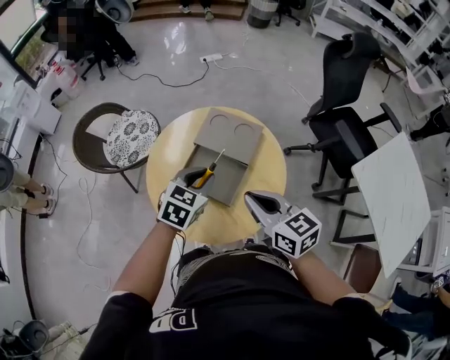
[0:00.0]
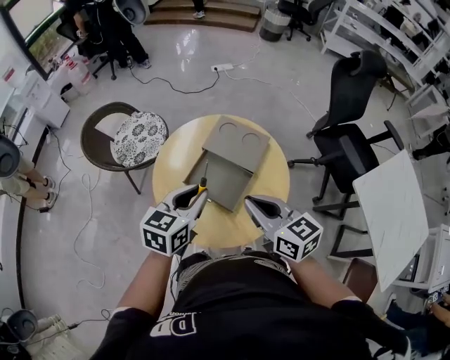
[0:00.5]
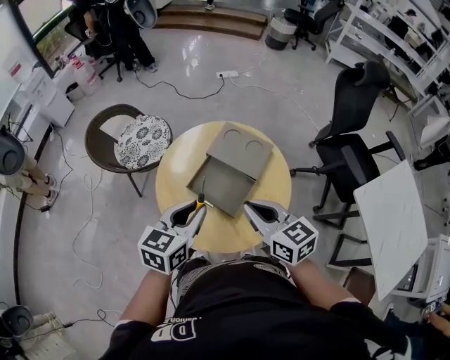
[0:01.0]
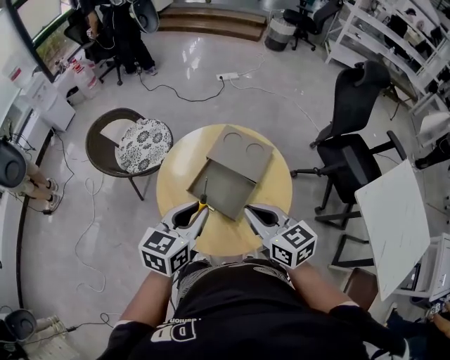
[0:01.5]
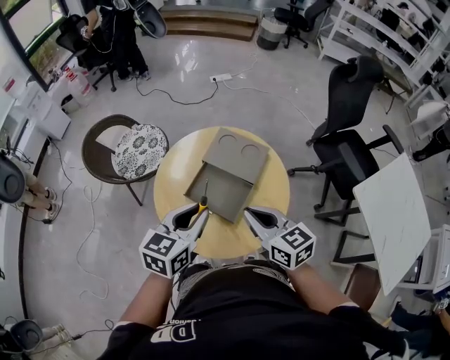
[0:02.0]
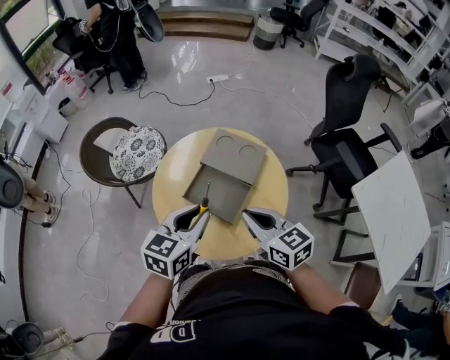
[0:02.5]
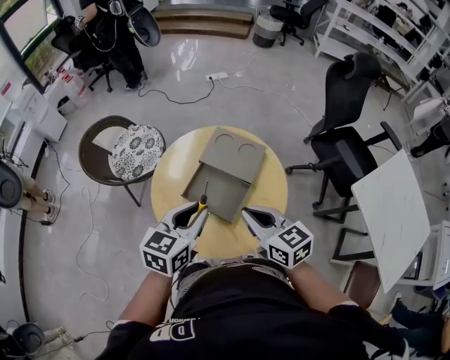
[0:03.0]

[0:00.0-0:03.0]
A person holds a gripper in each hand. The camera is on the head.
0:00.0 to 0:01.5: The left gripper travels upward, backward and to the left by about 10 cm, and swivels roughly 20 degrees.
0:01.5 to 0:03.0: The grippers make only small movements.

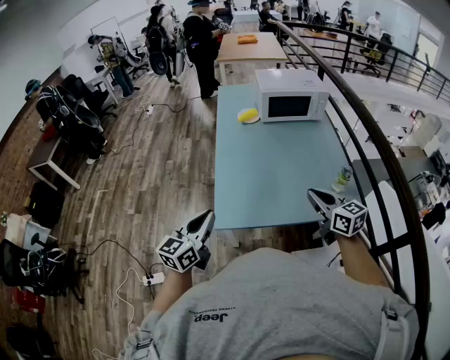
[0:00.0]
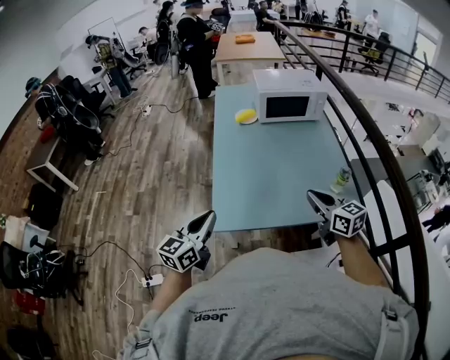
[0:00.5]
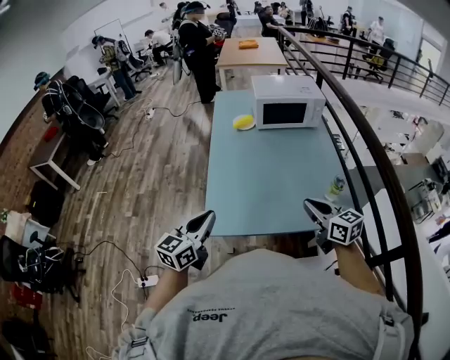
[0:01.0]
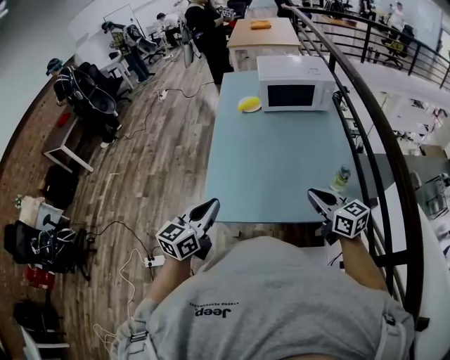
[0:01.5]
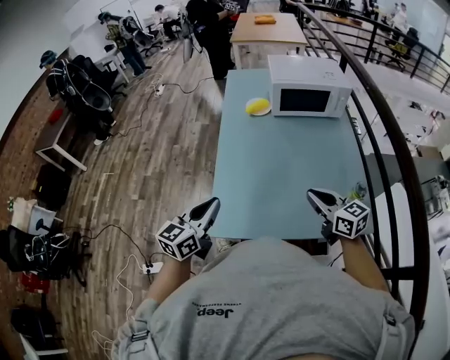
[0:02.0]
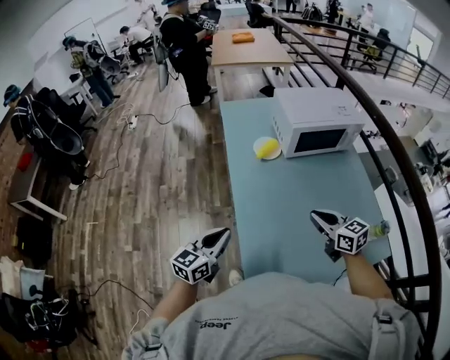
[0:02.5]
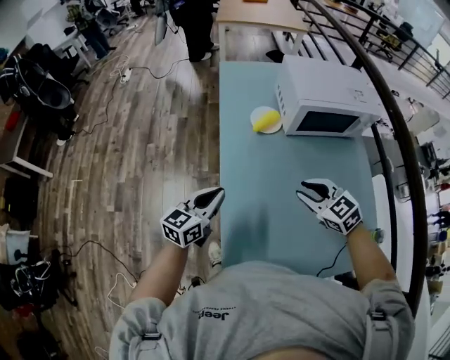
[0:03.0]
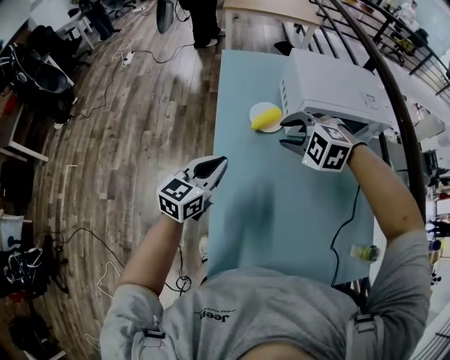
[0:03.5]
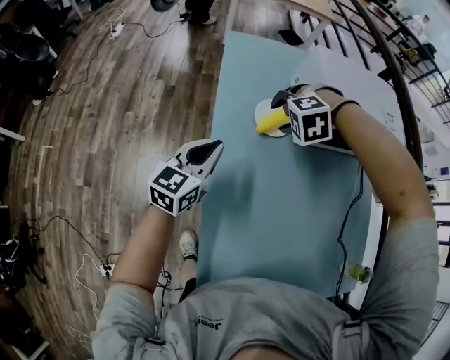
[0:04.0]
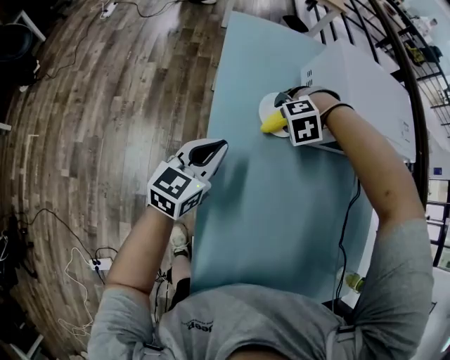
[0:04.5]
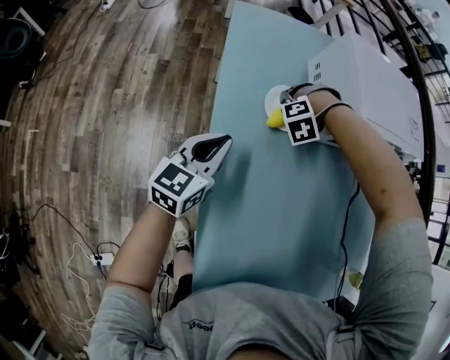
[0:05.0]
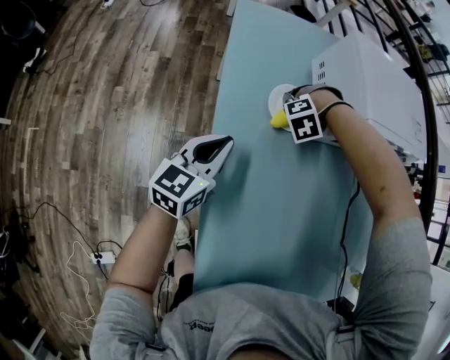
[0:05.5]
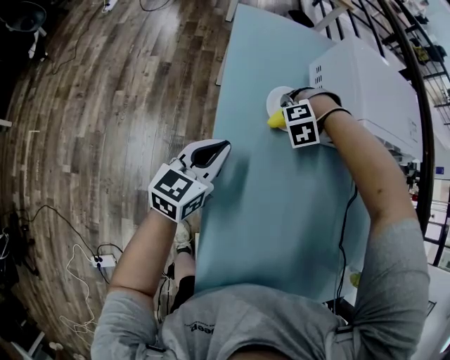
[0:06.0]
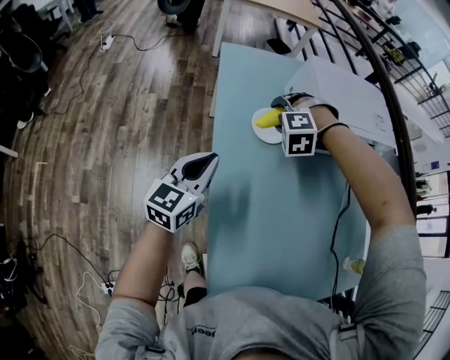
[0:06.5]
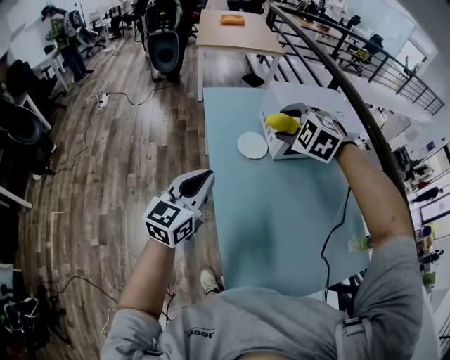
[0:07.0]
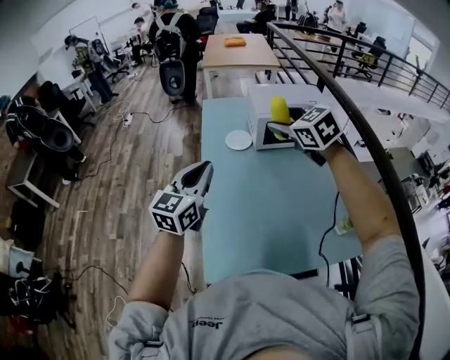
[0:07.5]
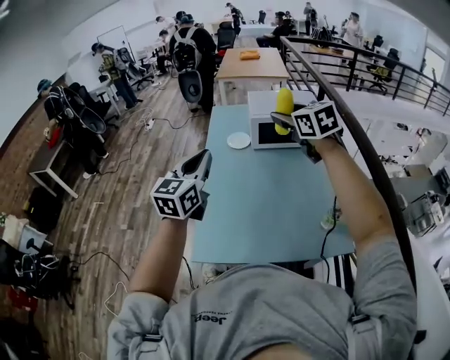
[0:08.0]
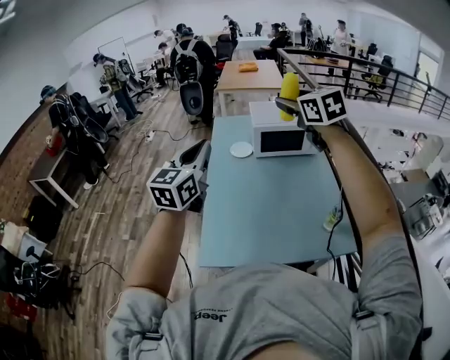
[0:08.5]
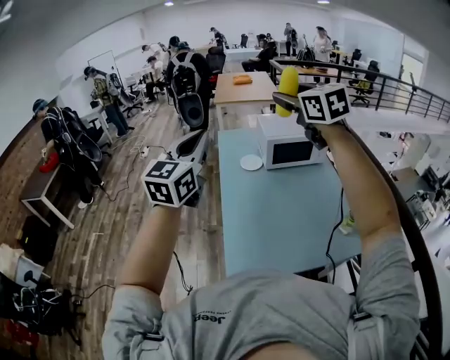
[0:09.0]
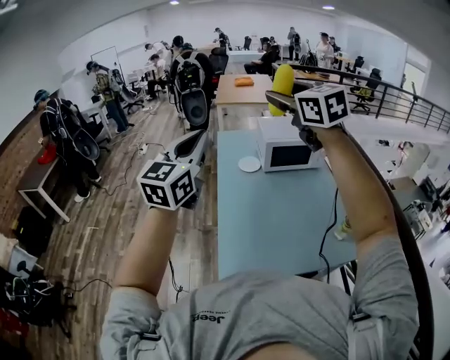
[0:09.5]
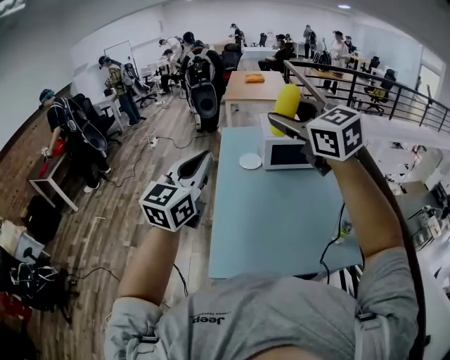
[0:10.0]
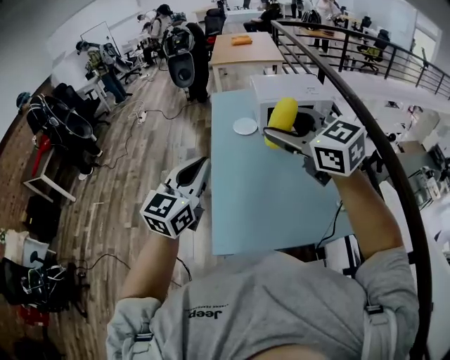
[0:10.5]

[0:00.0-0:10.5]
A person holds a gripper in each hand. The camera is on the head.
0:00.0 to 0:02.0: The left gripper goes some 10 cm forward. The right gripper moves forward and downward, about 10 cm.
0:02.0 to 0:04.0: Both grippers are carried roughly 50 cm. The right gripper tips its fingers downward by roughly 70 degrees, and opens its fingers.
0:04.0 to 0:06.5: The right gripper goes downward and returns, some 20 cm each way, and rotates roughly 20 degrees; the left gripper travels downward and back again, some 10 cm each way.
0:06.5 to 0:08.5: The right gripper heads upward, covering about 50 cm, and points its fingers roughly 50 degrees further upward; the left gripper moves approximately 50 cm, and swivels approximately 20 degrees.
0:08.5 to 0:10.5: The right gripper is displaced backward, to the left and downward by roughly 20 cm, while the left gripper heads downward and to the left, covering some 10 cm.

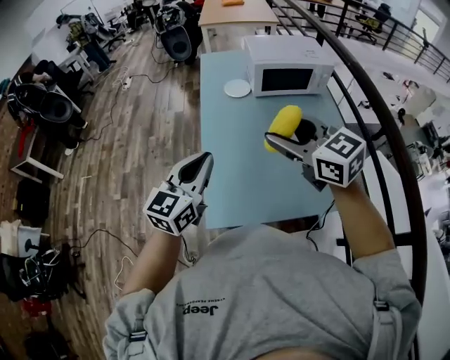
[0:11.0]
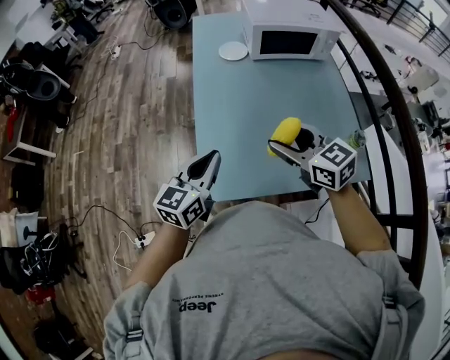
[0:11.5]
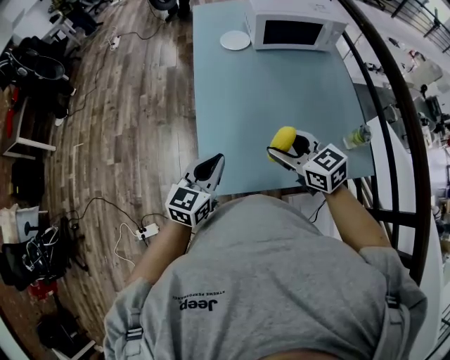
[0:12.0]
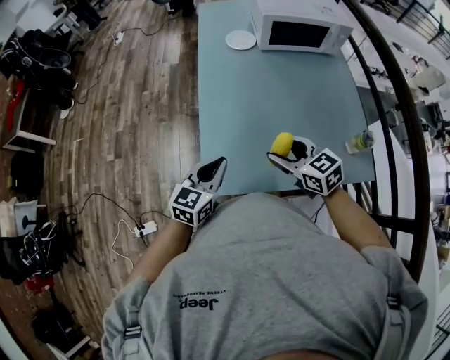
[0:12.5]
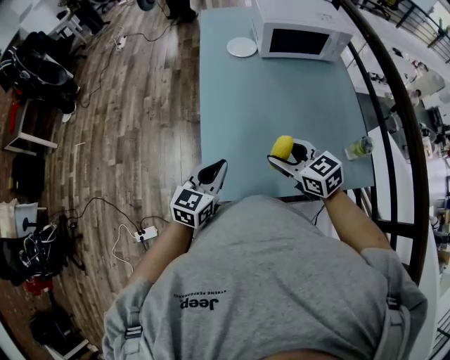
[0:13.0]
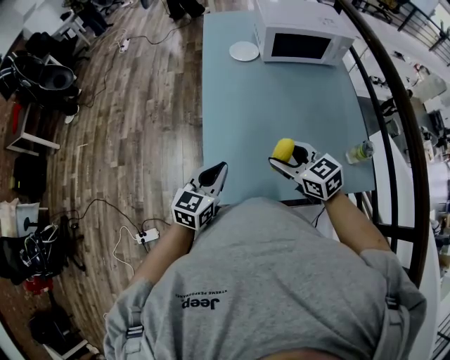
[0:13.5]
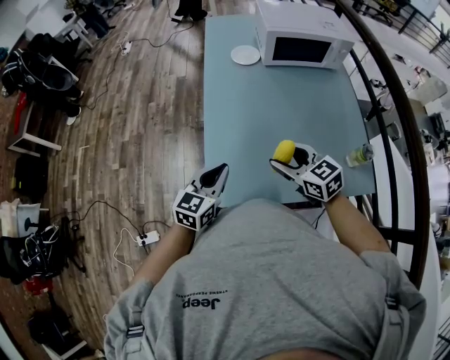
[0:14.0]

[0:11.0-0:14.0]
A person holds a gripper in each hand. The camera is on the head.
0:11.0 to 0:12.5: The two grippers go about 20 cm downward.
0:12.5 to 0:14.0: The grippers stay close to where they were, moving slightly.

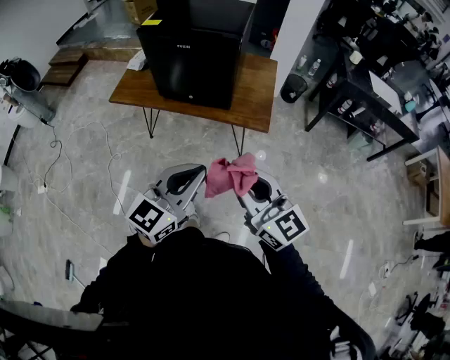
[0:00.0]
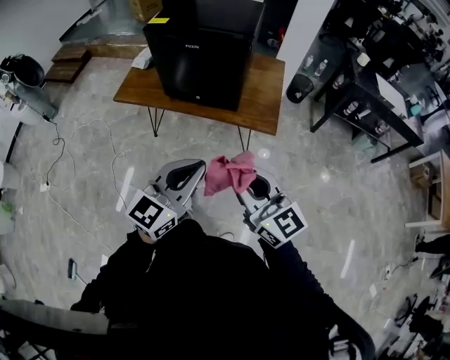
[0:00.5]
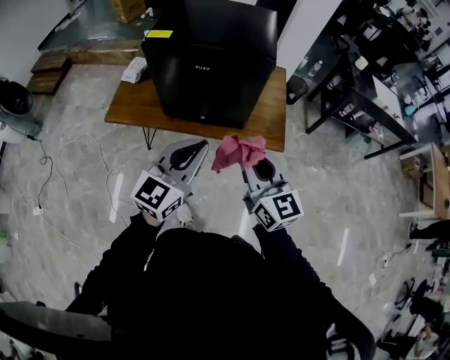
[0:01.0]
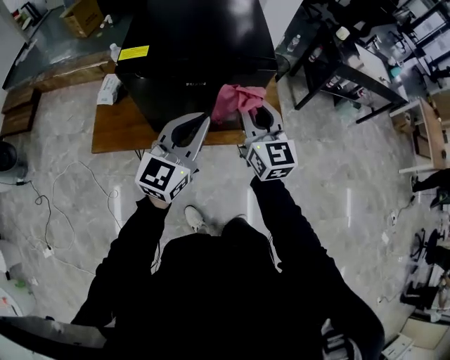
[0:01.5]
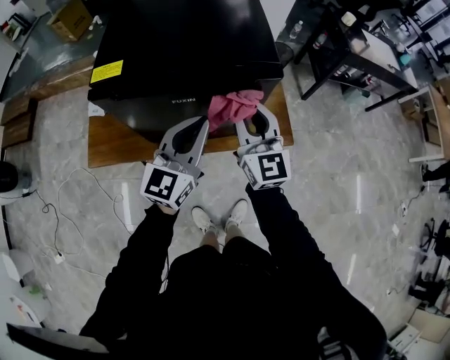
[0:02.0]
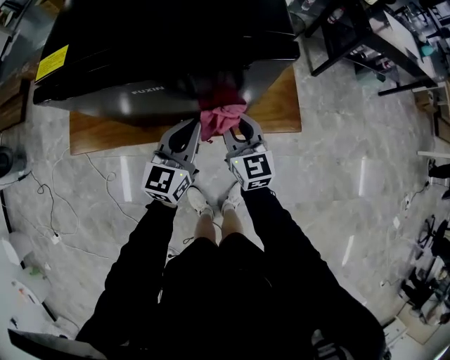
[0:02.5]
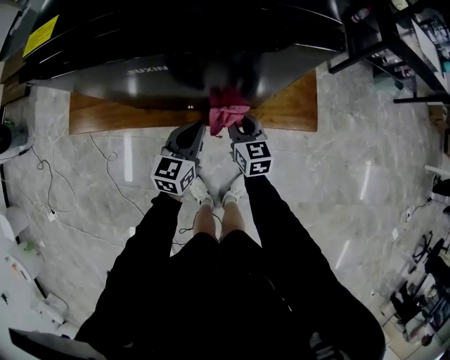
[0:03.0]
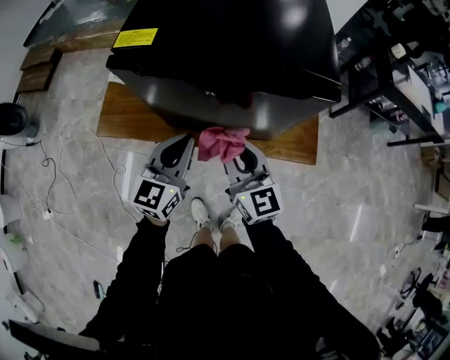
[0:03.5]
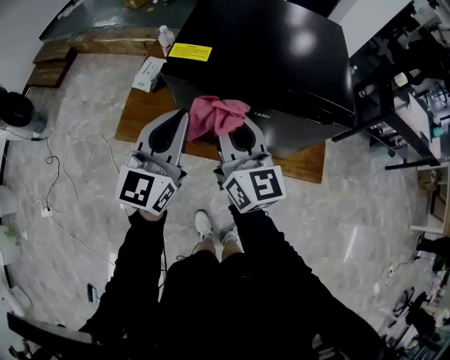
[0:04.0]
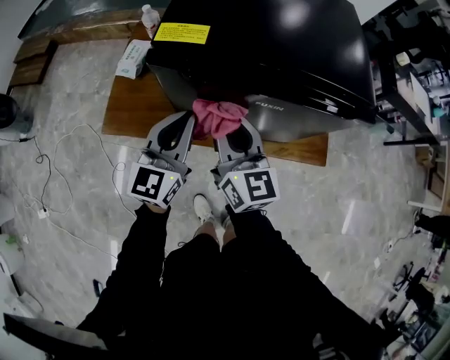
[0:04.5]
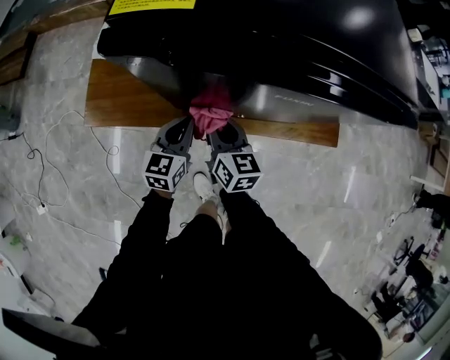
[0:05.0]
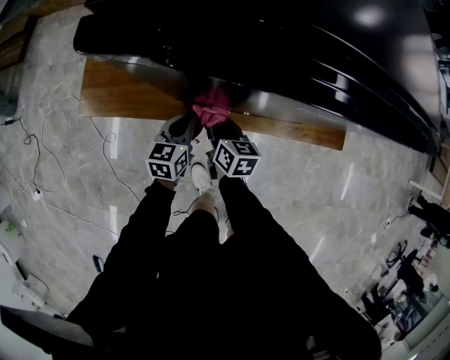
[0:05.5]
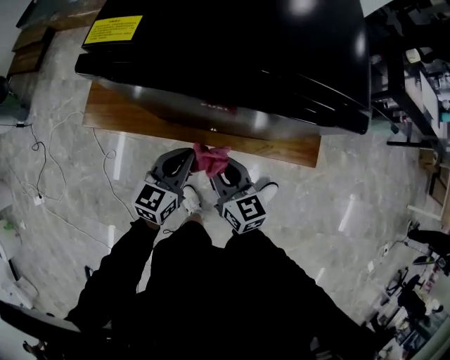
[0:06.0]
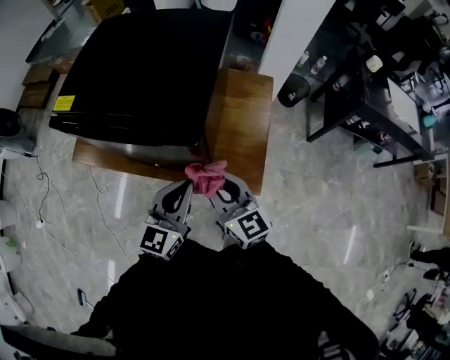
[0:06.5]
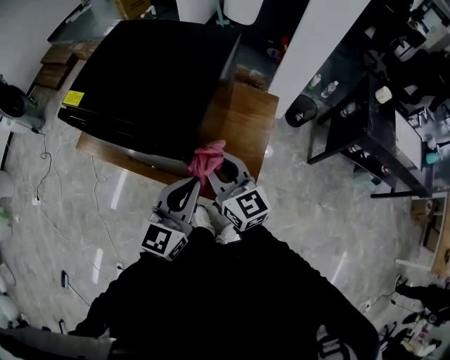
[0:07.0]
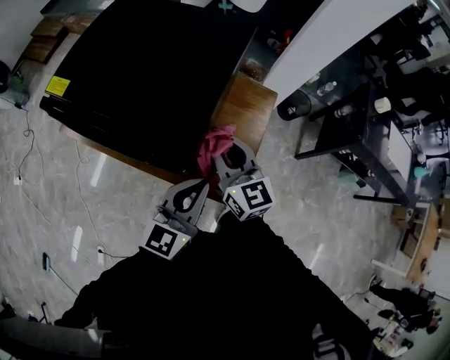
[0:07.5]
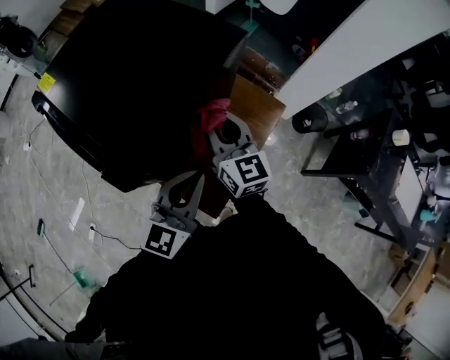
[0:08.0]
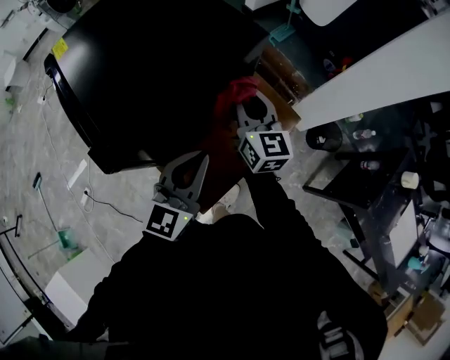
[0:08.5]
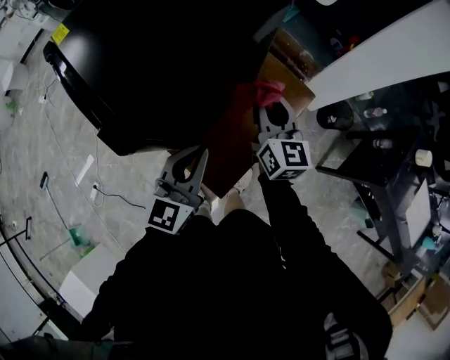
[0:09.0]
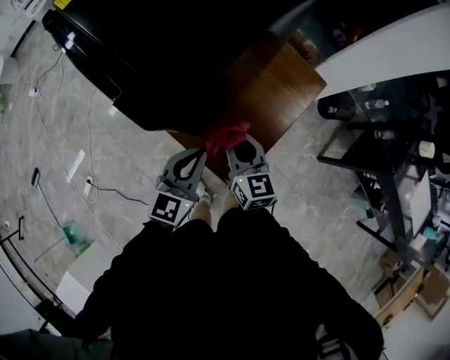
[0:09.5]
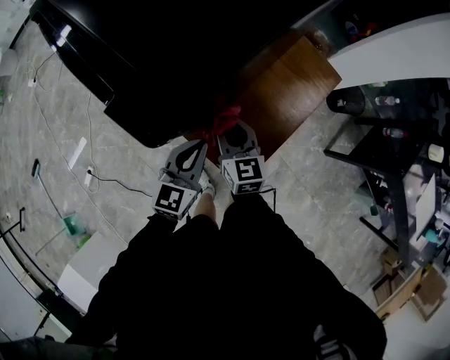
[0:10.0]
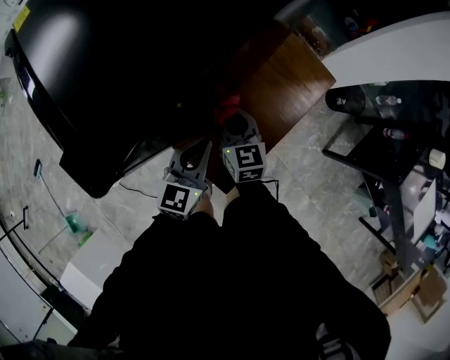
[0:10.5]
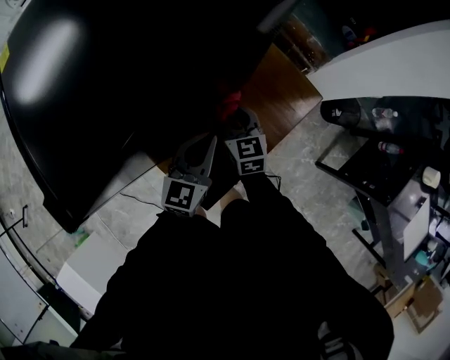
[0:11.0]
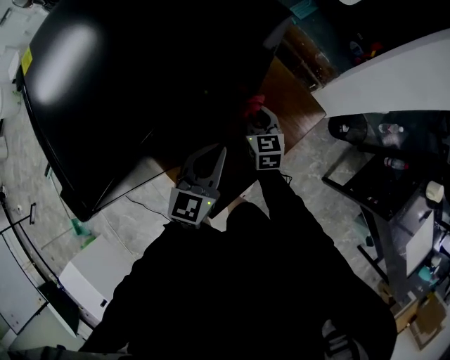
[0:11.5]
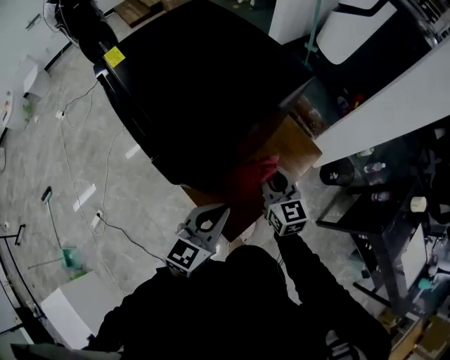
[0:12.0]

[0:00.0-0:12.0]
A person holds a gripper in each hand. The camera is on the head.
0:00.0 to 0:02.0: Both grippers are carried forward and to the left, roughly 50 cm. The right gripper rotates about 40 degrees.
0:02.0 to 0:04.0: The grippers both shift to the left by about 20 cm. The right gripper moves approximately 40 cm downward and comes back, and swivels roughly 30 degrees. Meanwhile the left gripper travels downward and back again, approximately 35 cm each way, and swivels roughly 20 degrees.
0:04.0 to 0:06.0: The right gripper travels downward by roughly 25 cm, and changes its angle by roughly 30 degrees, while the left gripper is displaced downward and to the right by some 30 cm, and turns by roughly 30 degrees.
0:06.0 to 0:08.0: The pair of grippers is taken to the right, approximately 40 cm. The grippers both shift upward by roughly 20 cm. The left gripper rotates about 30 degrees, while the right gripper swivels roughly 30 degrees.
0:08.0 to 0:10.0: The left gripper shifts about 25 cm downward and to the left. The right gripper travels downward, to the left and backward by approximately 30 cm.
0:10.0 to 0:12.0: Both grippers move upward and to the right, approximately 20 cm. The right gripper goes forward and returns, some 20 cm each way.
